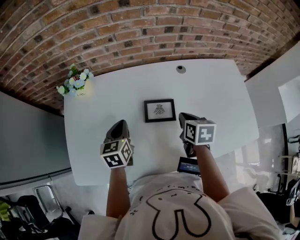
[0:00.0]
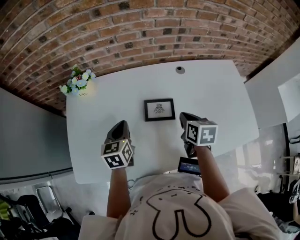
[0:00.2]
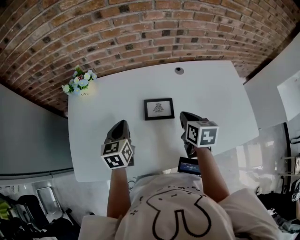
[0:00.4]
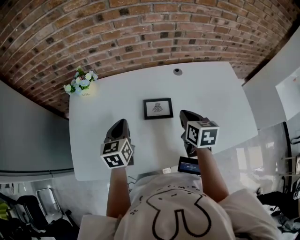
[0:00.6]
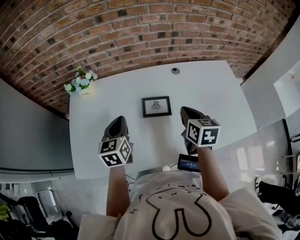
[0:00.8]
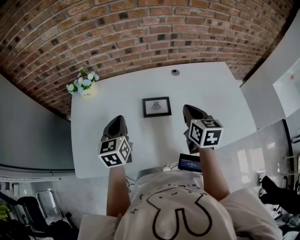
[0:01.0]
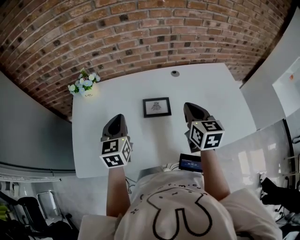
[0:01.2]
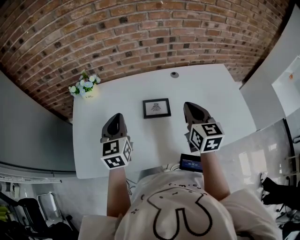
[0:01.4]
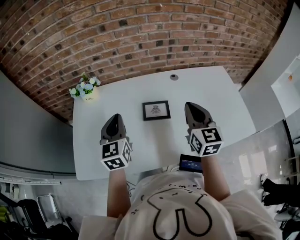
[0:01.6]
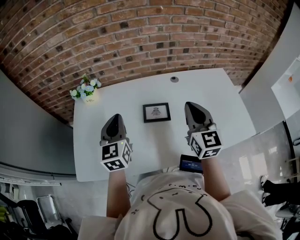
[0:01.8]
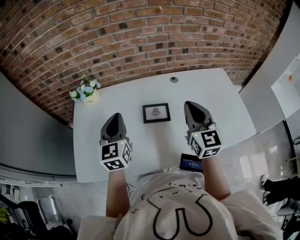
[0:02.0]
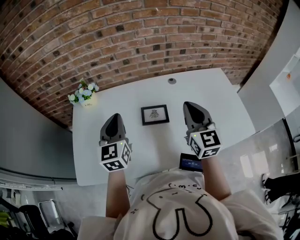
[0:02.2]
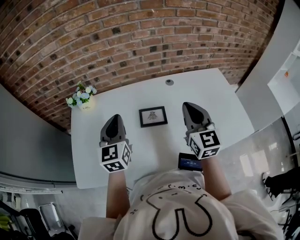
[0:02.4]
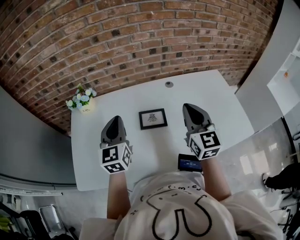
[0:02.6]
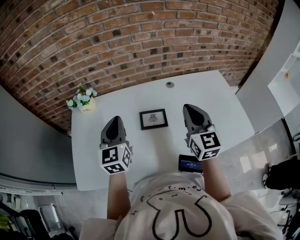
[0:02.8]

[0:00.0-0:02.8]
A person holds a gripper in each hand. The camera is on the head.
0:00.0 to 0:01.4: Both grippers move upward and backward, approximately 15 cm. The left gripper changes its angle by approximately 20 degrees, while the right gripper tilts its fingers some 30 degrees upward.
0:01.4 to 0:02.8: The grippers stay close to where they were, moving slightly.

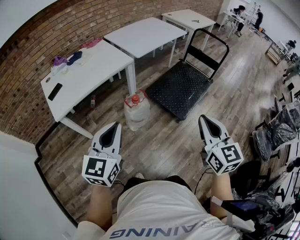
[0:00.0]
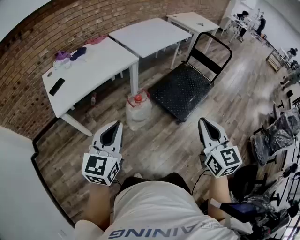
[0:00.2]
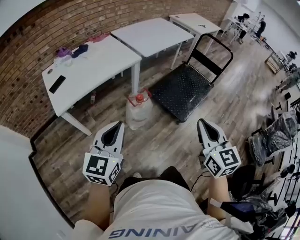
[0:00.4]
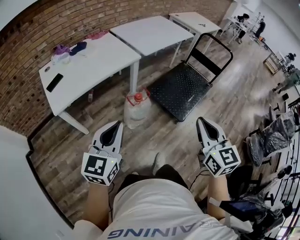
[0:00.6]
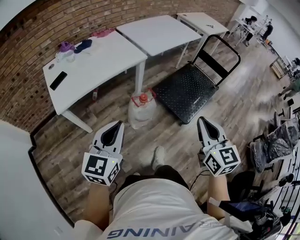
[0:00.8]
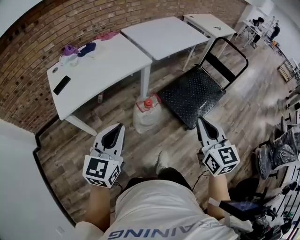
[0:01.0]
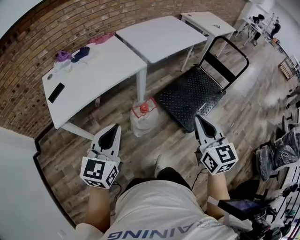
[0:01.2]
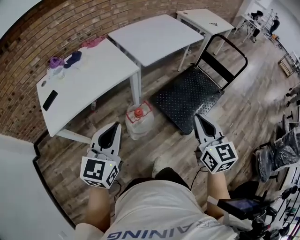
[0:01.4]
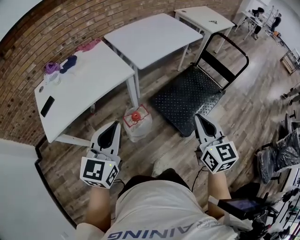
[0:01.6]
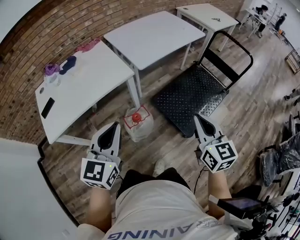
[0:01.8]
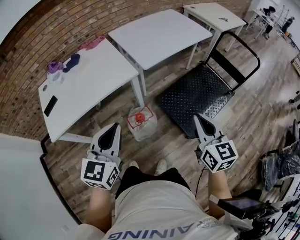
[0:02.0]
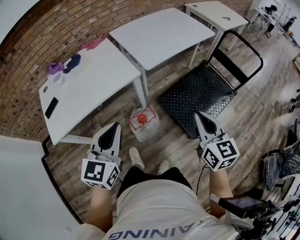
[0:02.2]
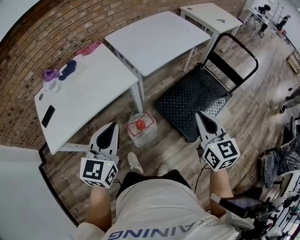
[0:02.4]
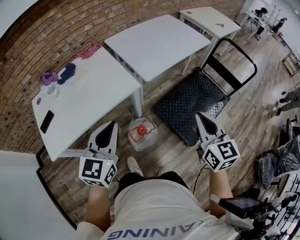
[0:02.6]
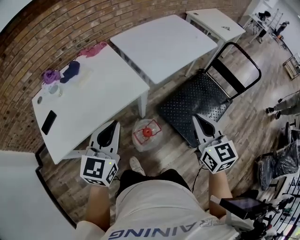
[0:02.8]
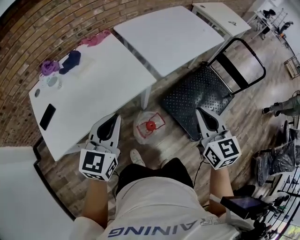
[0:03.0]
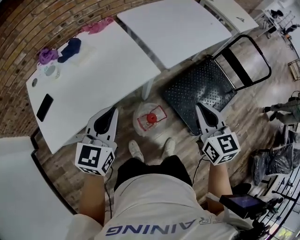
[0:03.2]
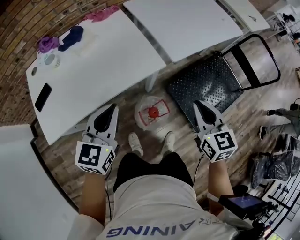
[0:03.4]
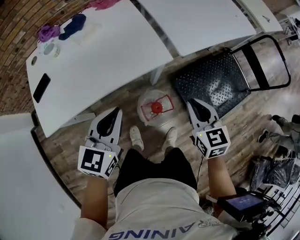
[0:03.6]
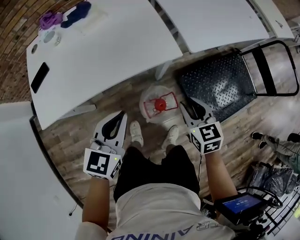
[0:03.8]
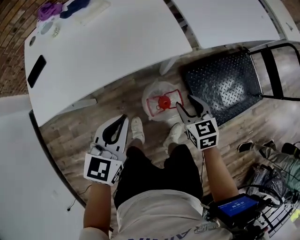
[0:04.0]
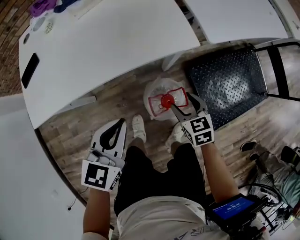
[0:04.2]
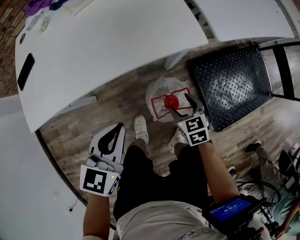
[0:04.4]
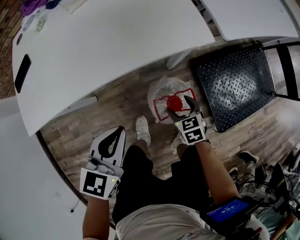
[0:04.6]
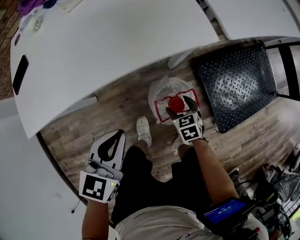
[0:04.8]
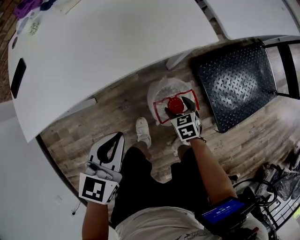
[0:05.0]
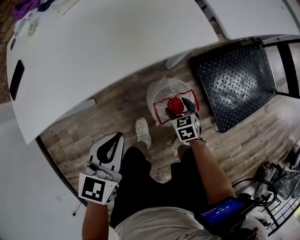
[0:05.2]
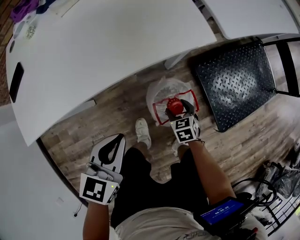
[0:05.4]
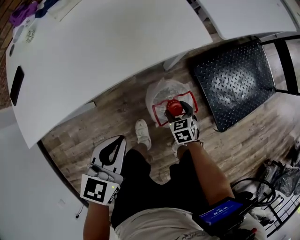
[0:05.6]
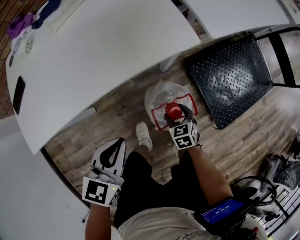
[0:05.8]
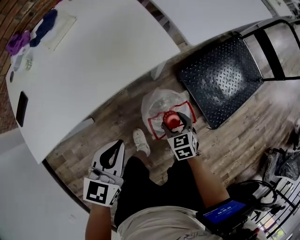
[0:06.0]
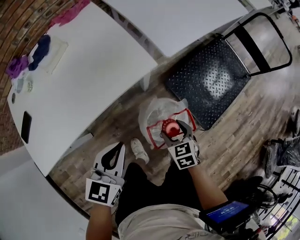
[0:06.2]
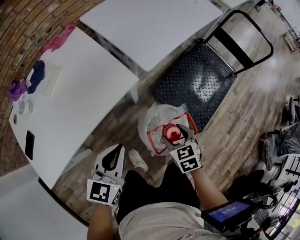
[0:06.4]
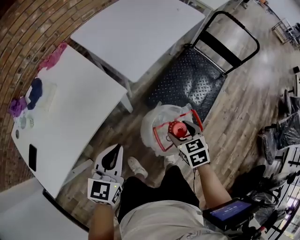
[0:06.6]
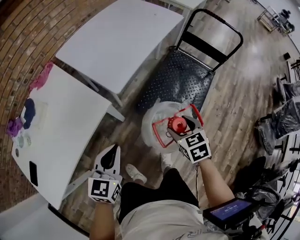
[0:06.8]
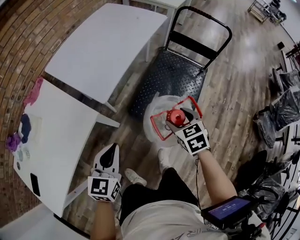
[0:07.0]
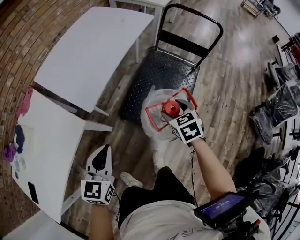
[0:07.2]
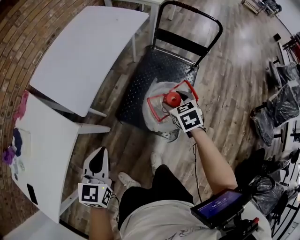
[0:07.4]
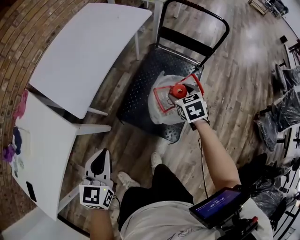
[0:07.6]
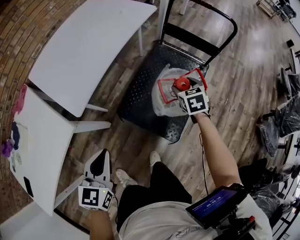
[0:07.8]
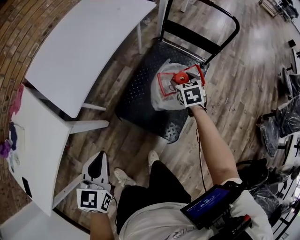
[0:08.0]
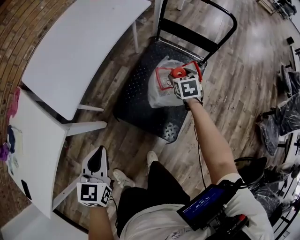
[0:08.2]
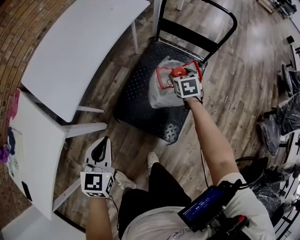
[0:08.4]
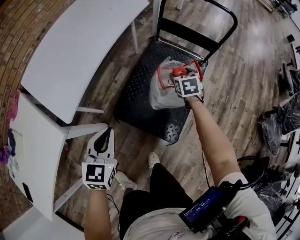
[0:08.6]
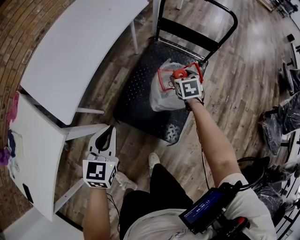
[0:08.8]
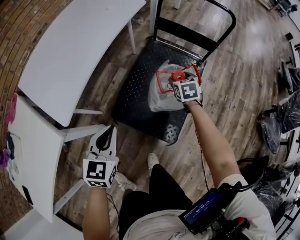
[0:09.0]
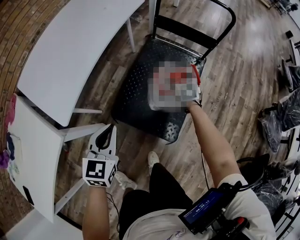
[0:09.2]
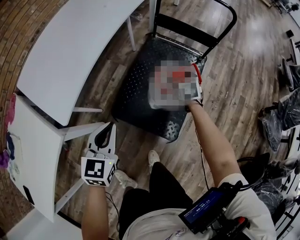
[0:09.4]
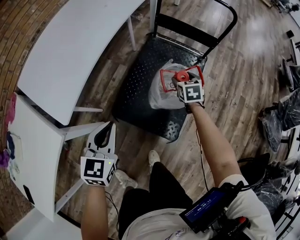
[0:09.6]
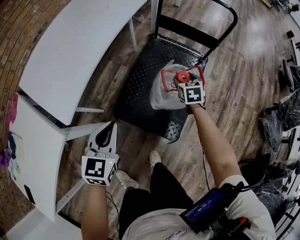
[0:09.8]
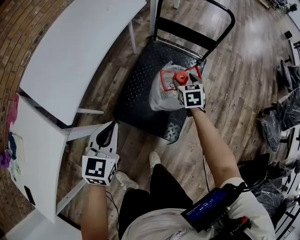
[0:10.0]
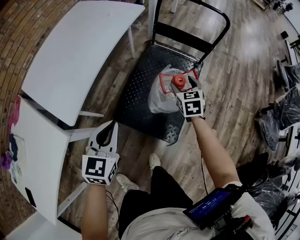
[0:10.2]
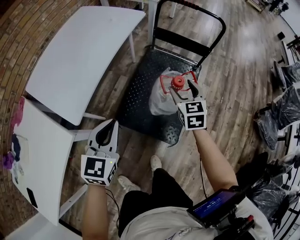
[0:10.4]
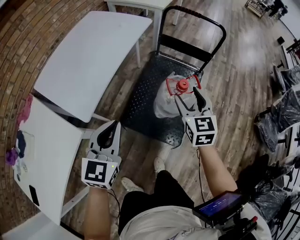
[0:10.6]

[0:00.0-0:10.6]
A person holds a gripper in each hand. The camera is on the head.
0:00.0 to 0:01.6: The grippers both shift forward by approximately 25 cm.
0:01.6 to 0:03.0: Both grippers move forward and to the left, some 20 cm.
0:03.0 to 0:04.6: The right gripper shifts some 50 cm downward, tips its fingers downward by roughly 30 degrees, and opens up; the left gripper is displaced downward by roughly 25 cm, and changes its angle by about 20 degrees.
0:04.6 to 0:06.0: The right gripper moves some 5 cm downward and comes back.
0:06.0 to 0:07.6: The left gripper ends up about 35 cm from where it was. Meanwhile the right gripper shifts by some 50 cm, and turns by approximately 30 degrees.
0:07.6 to 0:09.0: The right gripper moves downward, forward and to the right, approximately 20 cm; the left gripper is displaced forward, downward and to the right by approximately 15 cm.
0:09.0 to 0:10.6: The left gripper travels upward by about 15 cm. Meanwhile the right gripper goes roughly 30 cm upward and backward, and turns by about 30 degrees.

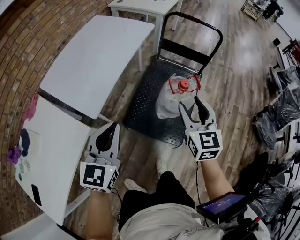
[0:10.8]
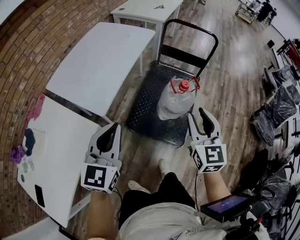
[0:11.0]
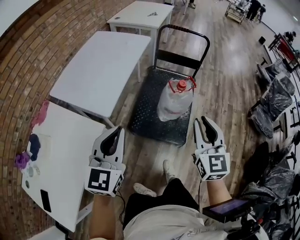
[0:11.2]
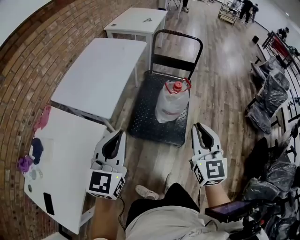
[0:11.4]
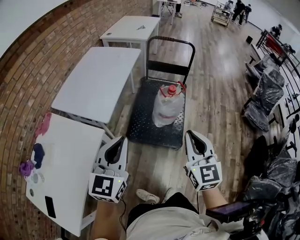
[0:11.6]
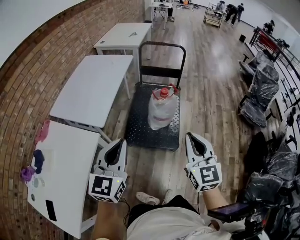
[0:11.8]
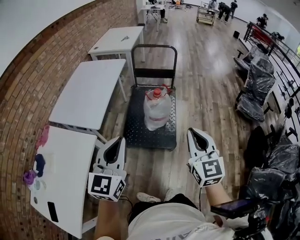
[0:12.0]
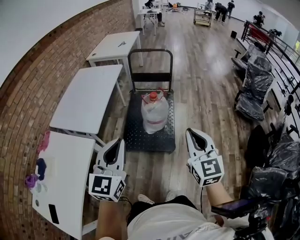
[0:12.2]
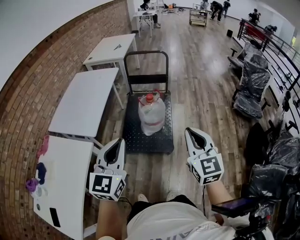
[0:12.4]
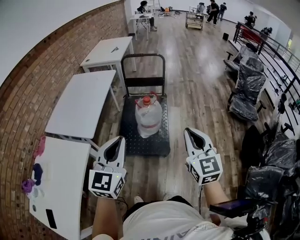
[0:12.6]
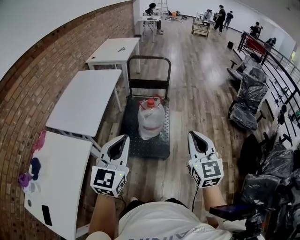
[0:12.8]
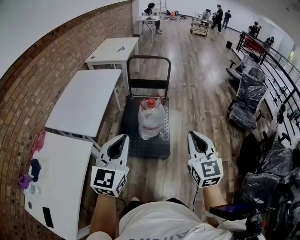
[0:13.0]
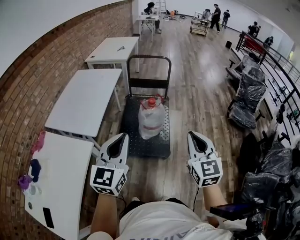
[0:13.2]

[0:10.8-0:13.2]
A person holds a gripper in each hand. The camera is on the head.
0:10.8 to 0:12.0: The grippers both shift backward and upward by about 30 cm. The right gripper closes.
0:12.0 to 0:13.2: The grippers stay close to where they were, moving slightly.

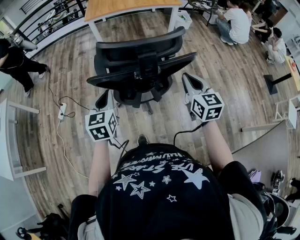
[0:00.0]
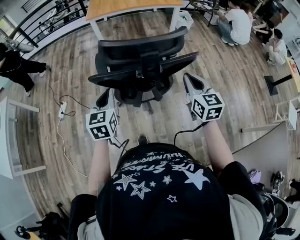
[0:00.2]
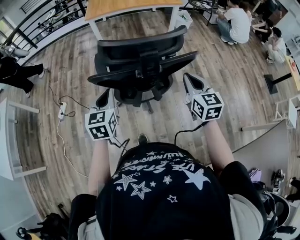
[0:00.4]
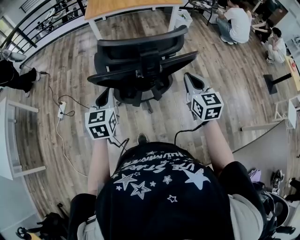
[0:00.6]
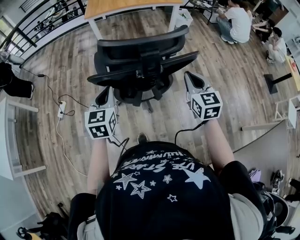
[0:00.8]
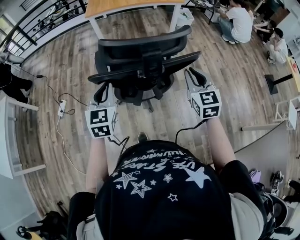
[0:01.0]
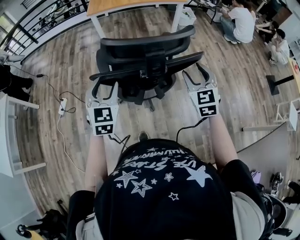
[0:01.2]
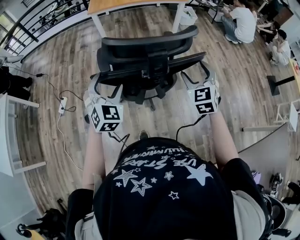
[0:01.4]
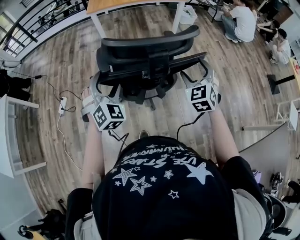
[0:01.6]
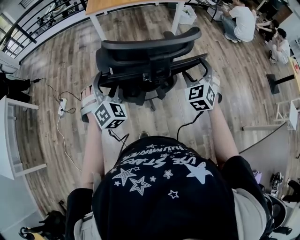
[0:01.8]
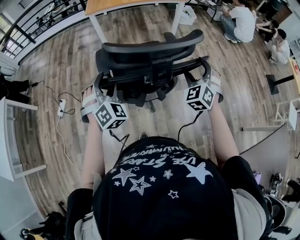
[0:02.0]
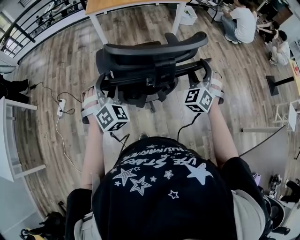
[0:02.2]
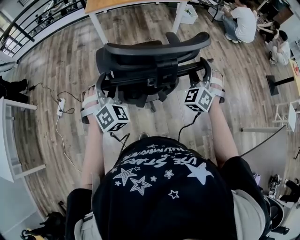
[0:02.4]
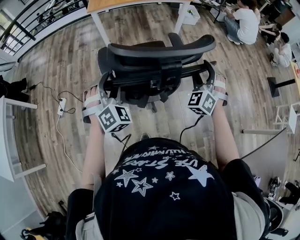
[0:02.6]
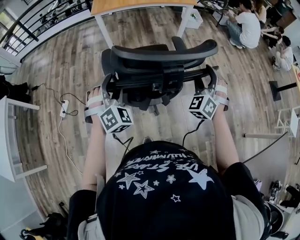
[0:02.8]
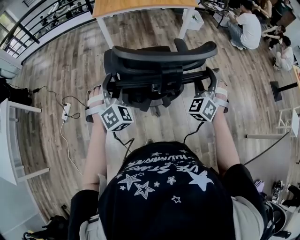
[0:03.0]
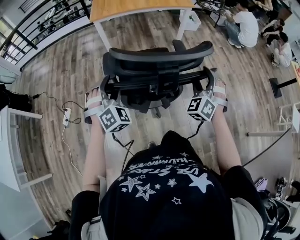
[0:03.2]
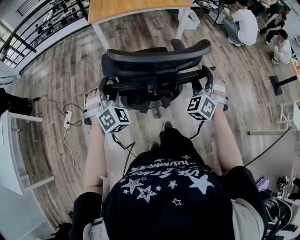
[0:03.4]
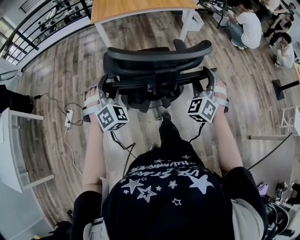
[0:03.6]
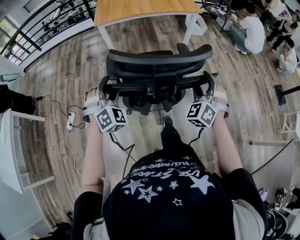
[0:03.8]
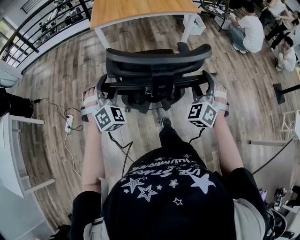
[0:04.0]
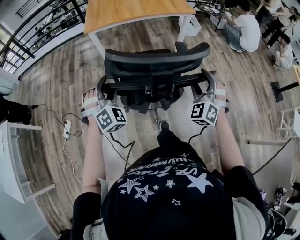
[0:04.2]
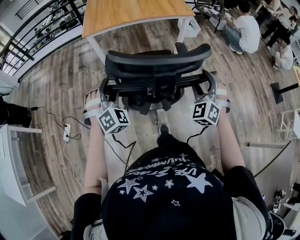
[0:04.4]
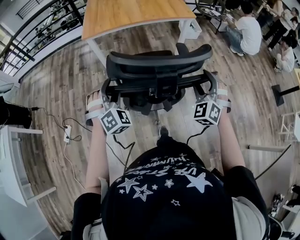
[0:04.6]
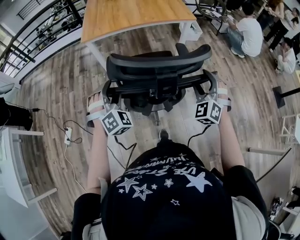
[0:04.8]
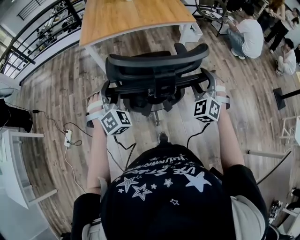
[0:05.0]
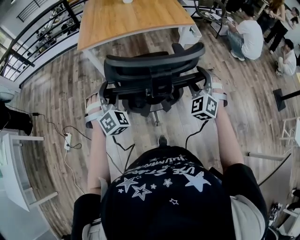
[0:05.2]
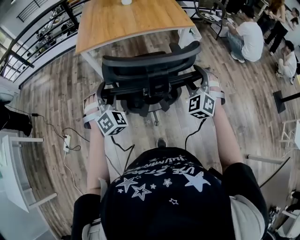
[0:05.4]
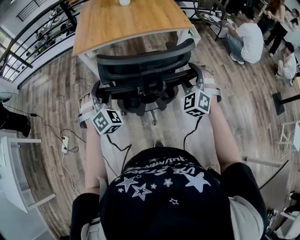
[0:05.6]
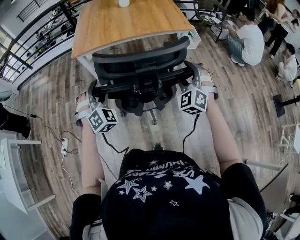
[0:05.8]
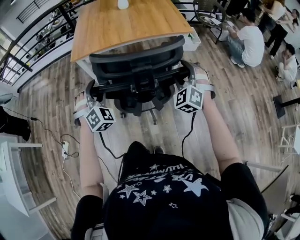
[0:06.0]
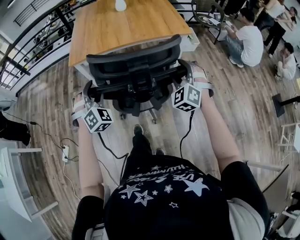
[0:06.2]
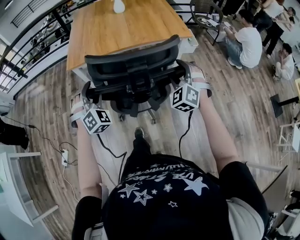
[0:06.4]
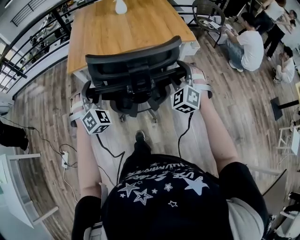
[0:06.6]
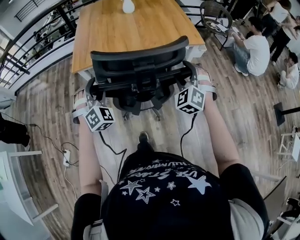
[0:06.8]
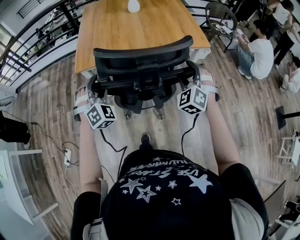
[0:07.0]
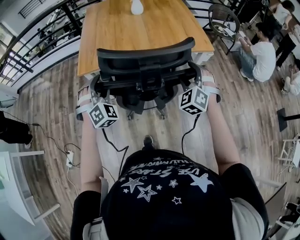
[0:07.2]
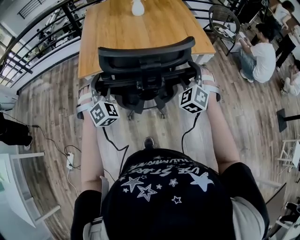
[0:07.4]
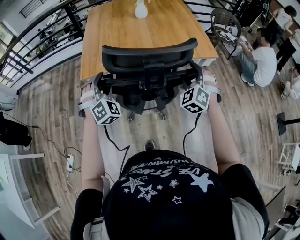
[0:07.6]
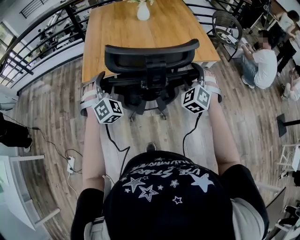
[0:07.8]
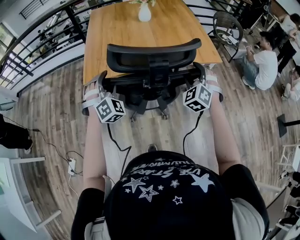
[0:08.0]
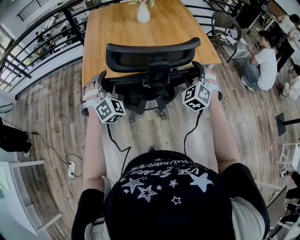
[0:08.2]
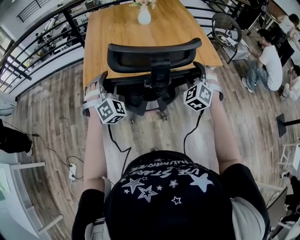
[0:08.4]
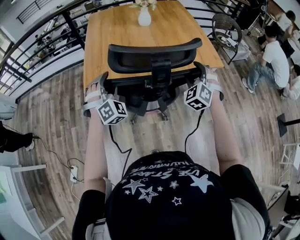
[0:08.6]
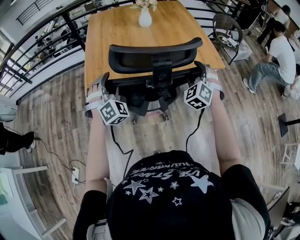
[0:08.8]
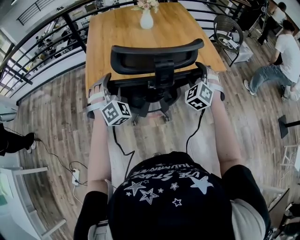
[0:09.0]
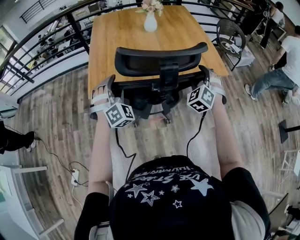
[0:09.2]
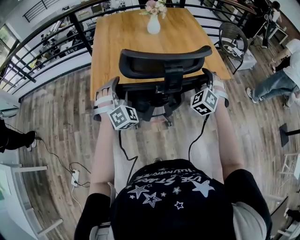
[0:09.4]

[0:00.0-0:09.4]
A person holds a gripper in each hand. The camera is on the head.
0:00.0 to 0:01.6: Both grippers move forward, some 5 cm. The right gripper swivels about 40 degrees, and opens up; the left gripper rolls clockwise, seen from behind, by some 50 degrees, and opens up.
0:01.6 to 0:03.2: The left gripper travels forward and to the left by roughly 10 cm, while the right gripper moves forward, roughly 5 cm, and swivels some 30 degrees.
0:03.2 to 0:04.8: Both grippers travel together forward, roughly 20 cm.
0:04.8 to 0:06.2: Both grippers move forward, approximately 20 cm.
0:06.2 to 0:07.8: Both grippers move forward, approximately 25 cm.
0:07.8 to 0:09.4: Both grippers travel together forward, about 10 cm.
